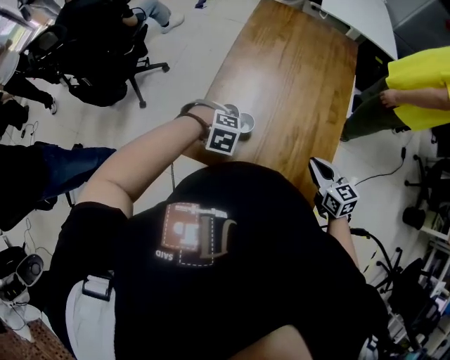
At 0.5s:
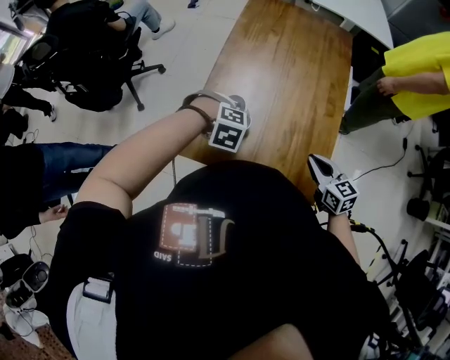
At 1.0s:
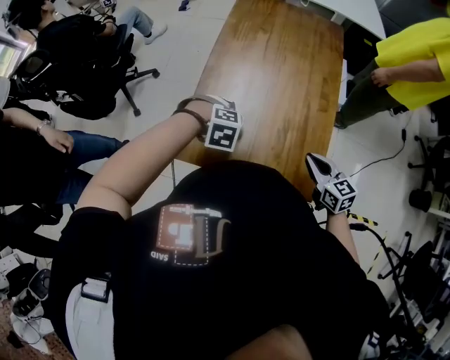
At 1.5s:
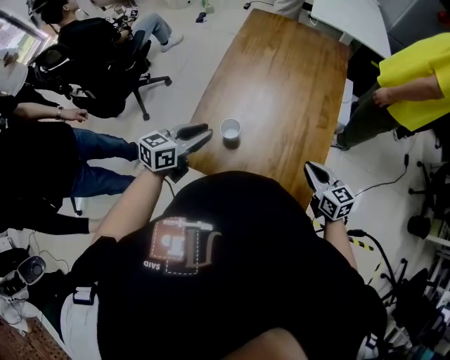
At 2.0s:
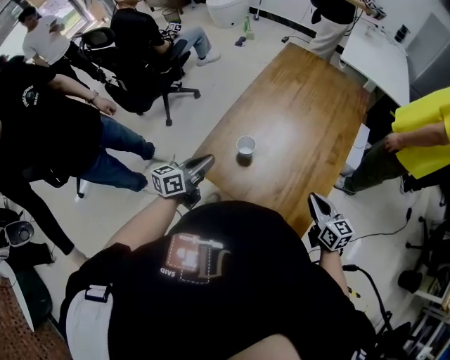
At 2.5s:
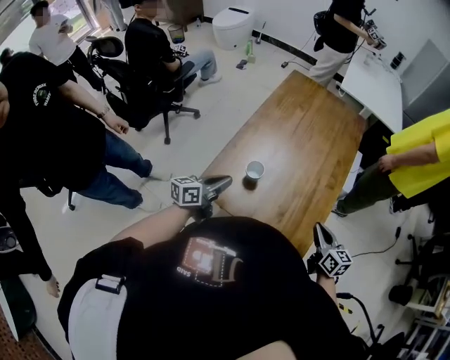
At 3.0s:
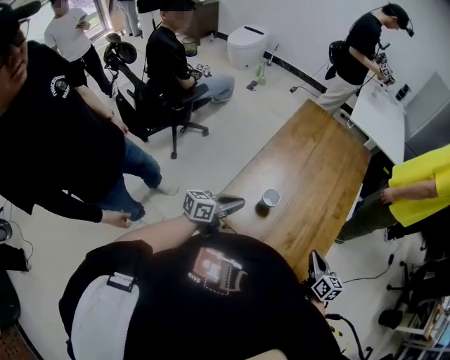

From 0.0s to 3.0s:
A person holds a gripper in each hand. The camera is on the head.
From 0.0s to 1.5s: The left gripper moves upward, approximately 10 cm, angles its fingers upward, by about 60 degrees, and opens.
From 1.5s to 3.0s: Both grippers move backward, roughly 5 cm. The left gripper closes.

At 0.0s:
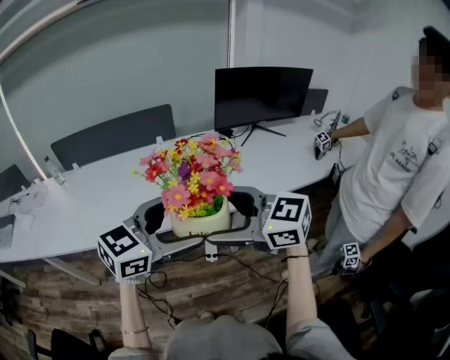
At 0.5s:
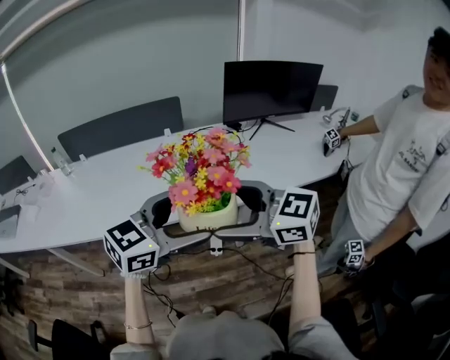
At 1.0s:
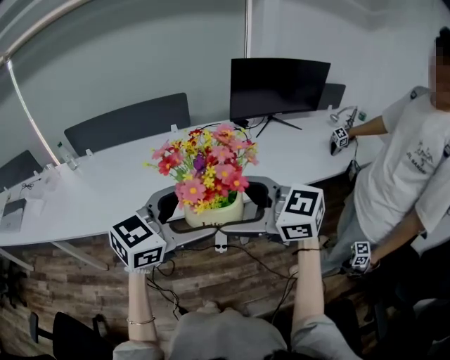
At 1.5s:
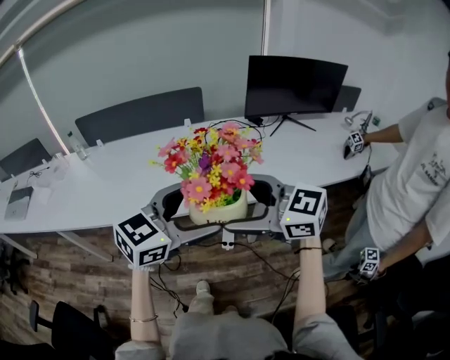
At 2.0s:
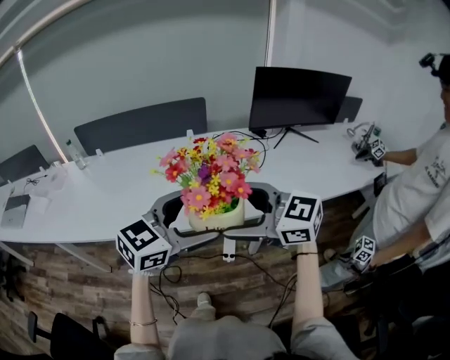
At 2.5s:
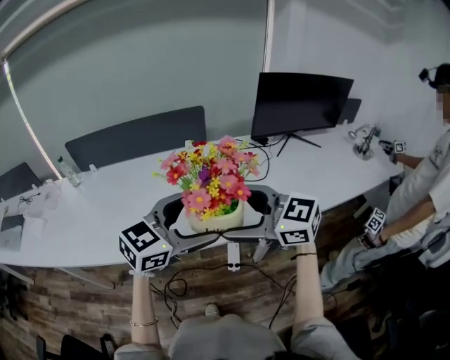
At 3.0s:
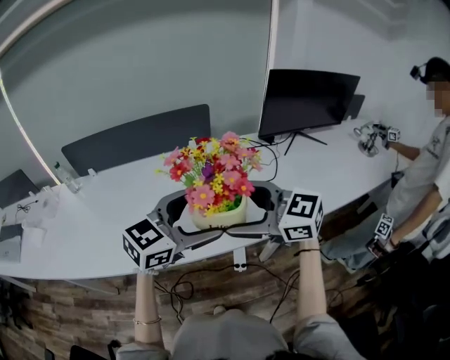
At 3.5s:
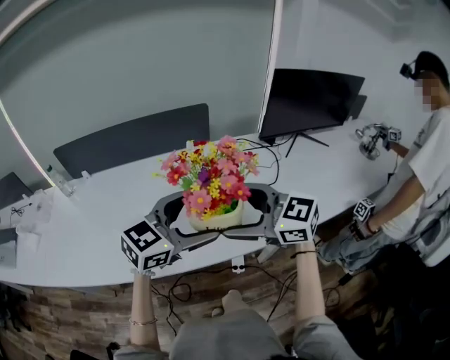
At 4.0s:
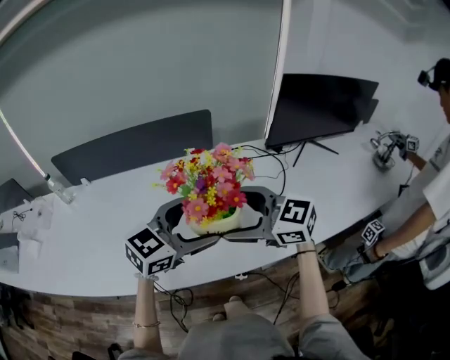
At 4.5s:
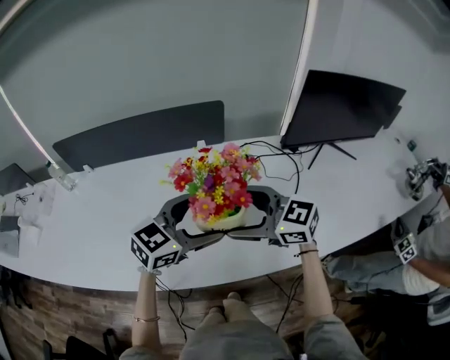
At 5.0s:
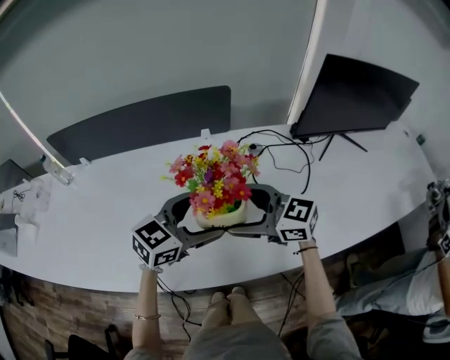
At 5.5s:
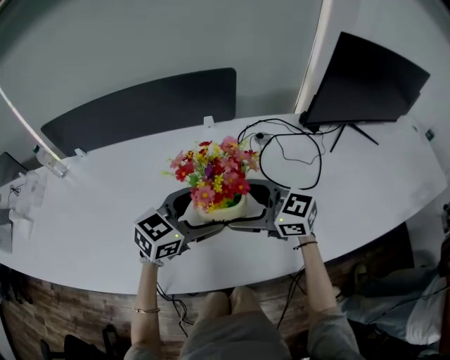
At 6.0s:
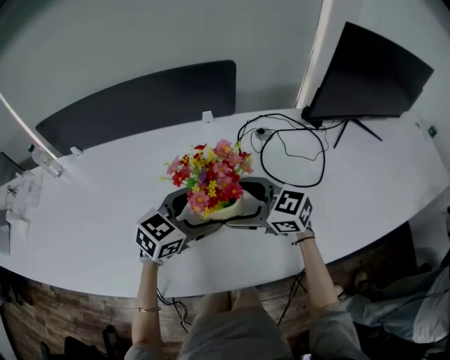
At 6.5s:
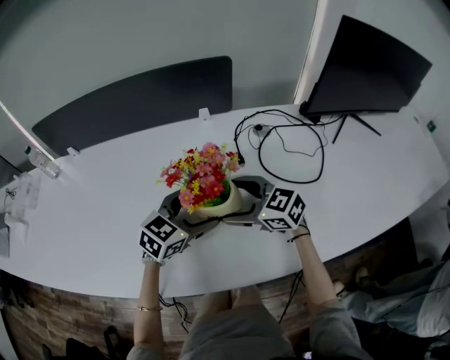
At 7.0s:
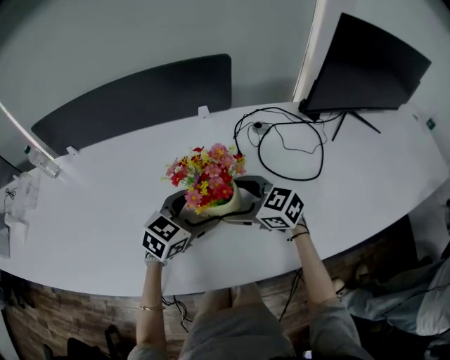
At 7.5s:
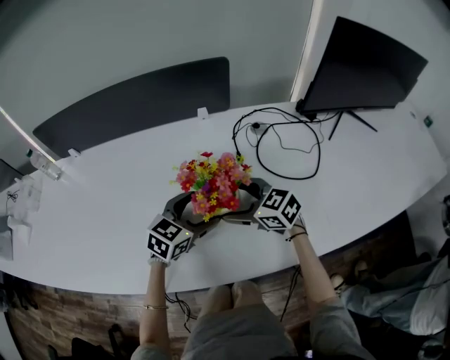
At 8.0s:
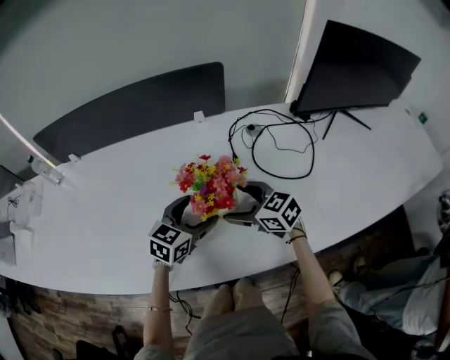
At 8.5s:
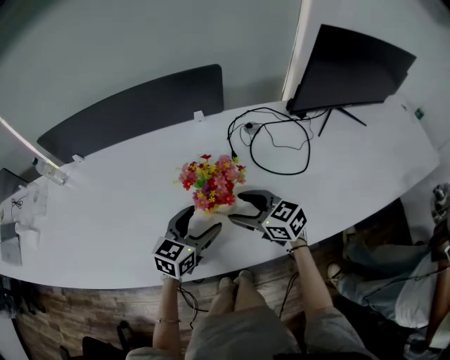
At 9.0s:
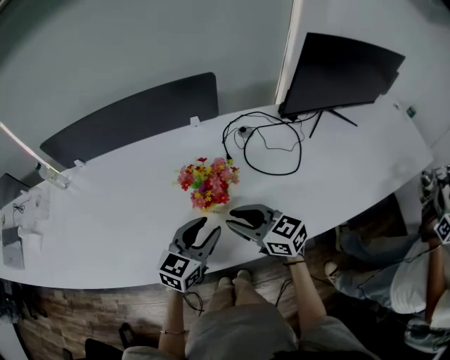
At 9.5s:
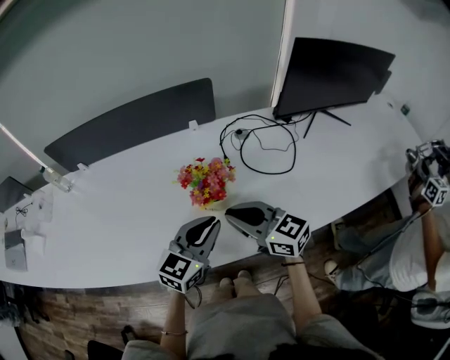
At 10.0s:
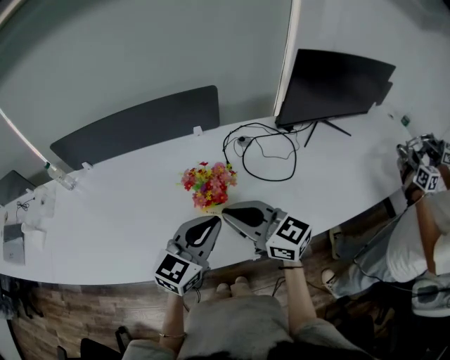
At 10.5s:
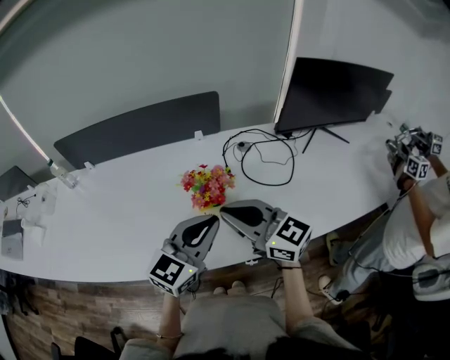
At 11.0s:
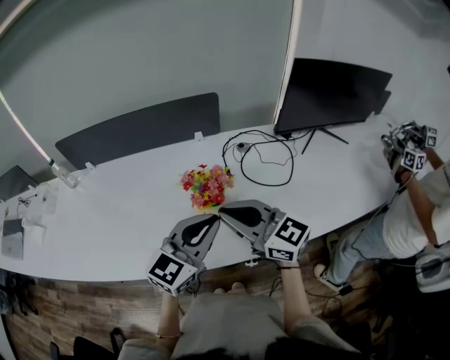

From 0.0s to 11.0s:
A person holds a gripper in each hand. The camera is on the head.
From 0.0s to 2.0s: The right gripper changes place by roughly 5 cm. The left gripper changes place by roughly 5 cm.
From 2.0s to 3.5s: The left gripper shifts by approximately 20 cm. The right gripper moves approximately 20 cm.
From 3.5s to 5.5s: Both grippers travel together downward, some 20 cm.
From 5.5s to 7.5s: Both grippers move downward, approximately 10 cm.
From 7.5s to 9.0s: The left gripper is displaced backward and upward by about 15 cm, and closes up; the right gripper shifts some 15 cm upward and backward, and closes up.
From 9.0s to 11.0s: Both grippers travel together upward, approximately 15 cm. The left gripper closes up. The right gripper rotates roughly 20 degrees.

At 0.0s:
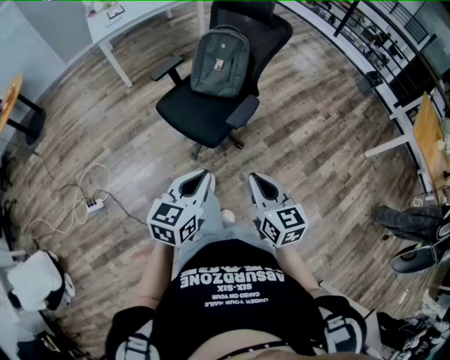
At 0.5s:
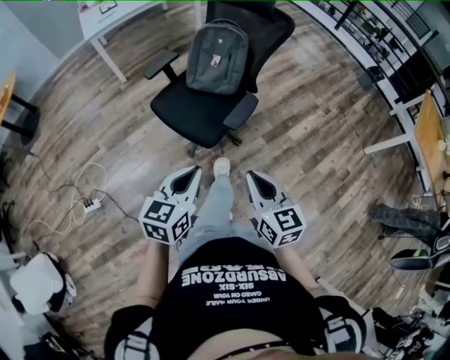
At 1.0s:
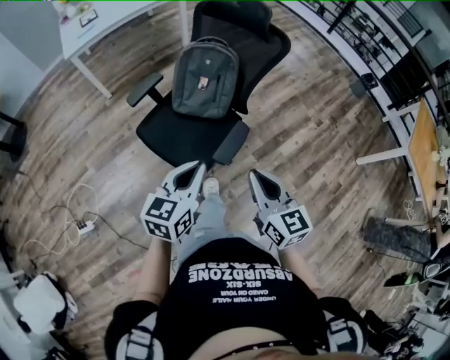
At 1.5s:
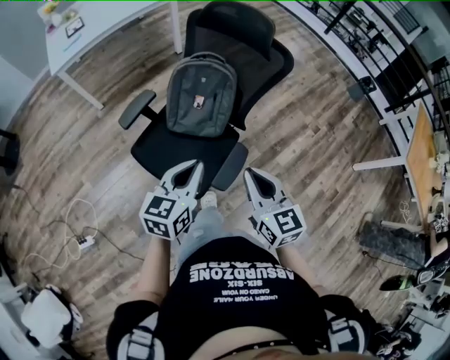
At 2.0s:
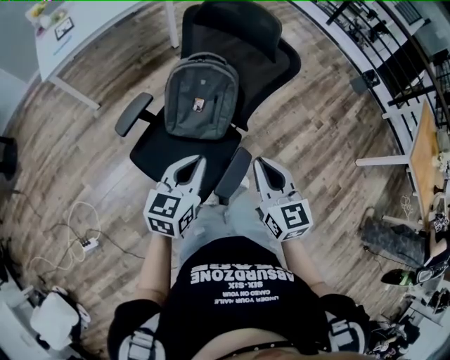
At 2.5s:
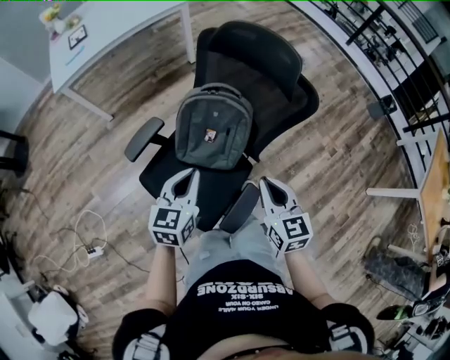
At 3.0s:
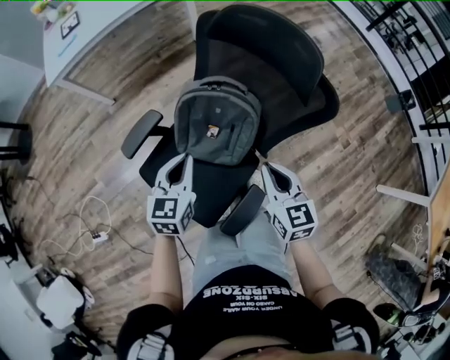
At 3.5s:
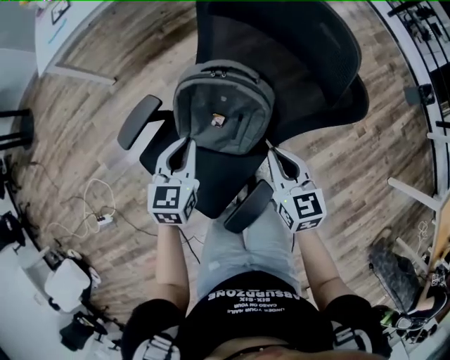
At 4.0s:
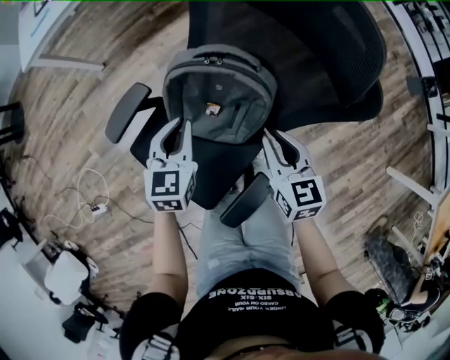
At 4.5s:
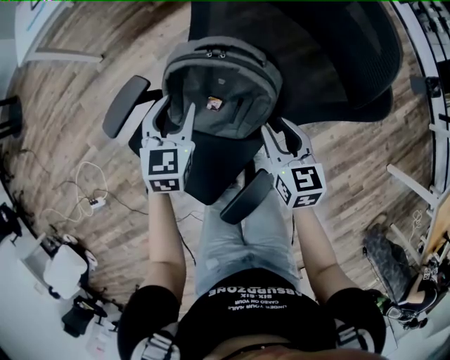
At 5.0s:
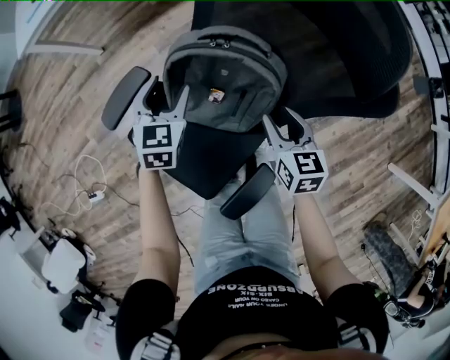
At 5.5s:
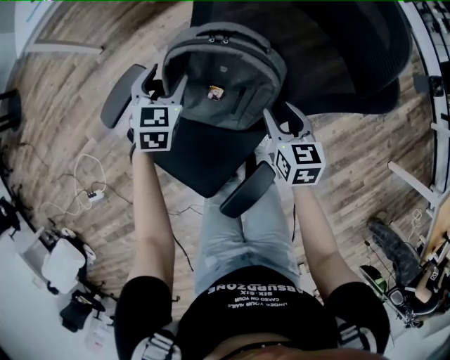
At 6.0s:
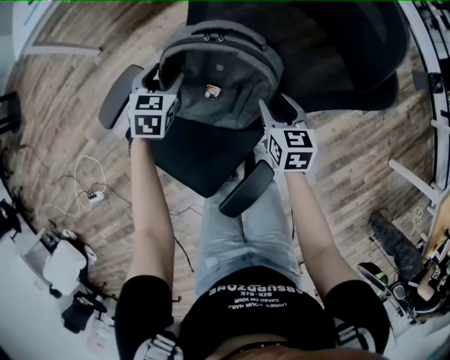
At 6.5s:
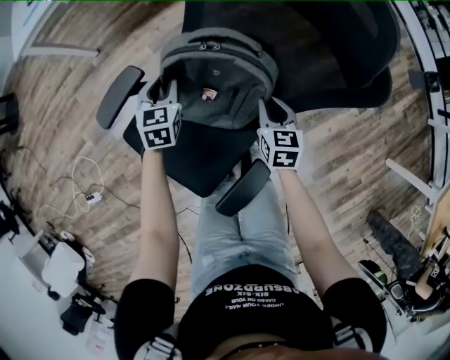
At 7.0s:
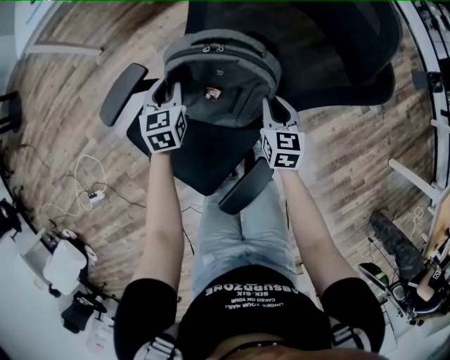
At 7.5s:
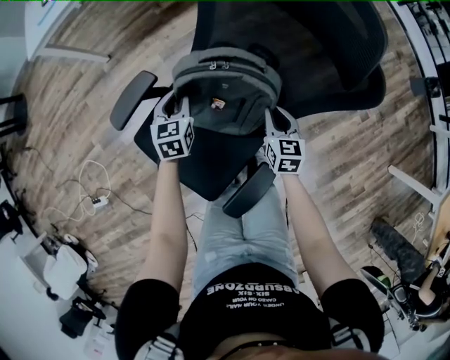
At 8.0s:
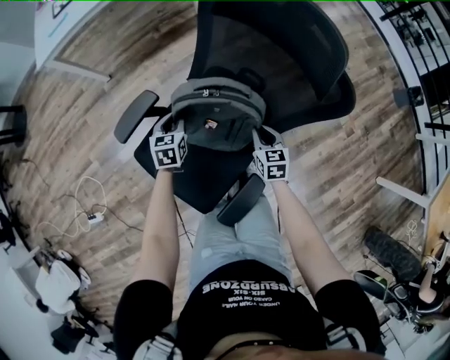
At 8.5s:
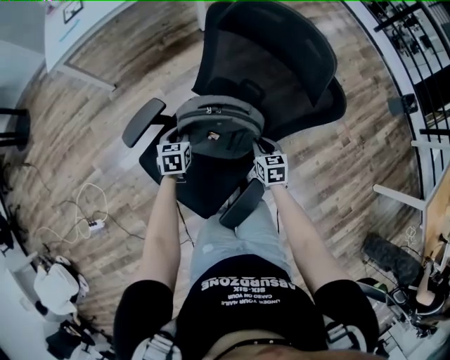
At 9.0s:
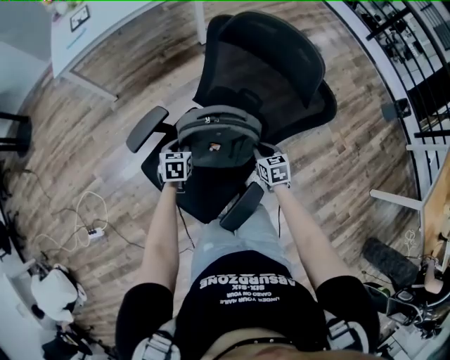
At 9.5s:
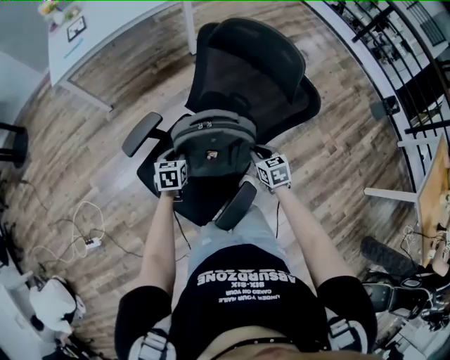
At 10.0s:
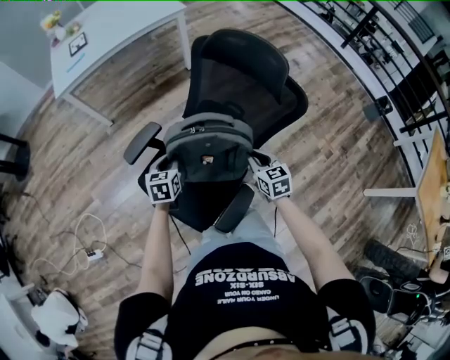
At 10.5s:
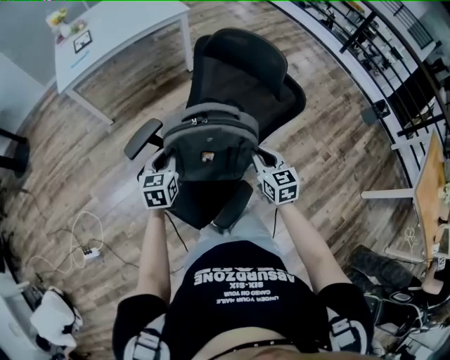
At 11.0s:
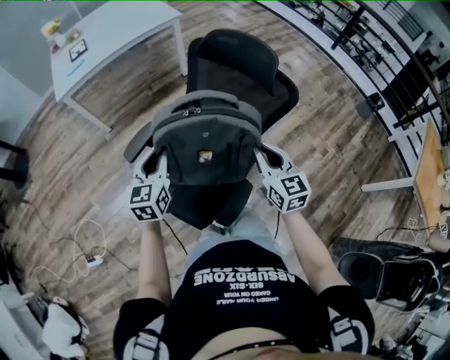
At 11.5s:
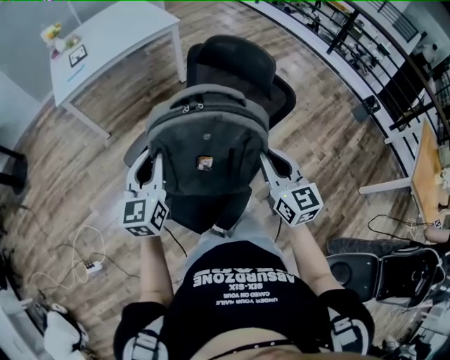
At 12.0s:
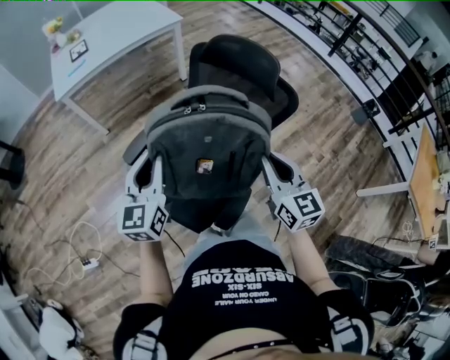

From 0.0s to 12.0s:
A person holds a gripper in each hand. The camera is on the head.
From 0.0s to 2.0s: The two grippers travel together, forward, roughly 40 cm.
From 2.0s to 4.0s: The two grippers go about 35 cm forward and downward. The left gripper rotates approximately 30 degrees.
From 4.0s to 6.0s: The left gripper shifts about 15 cm downward and forward, and opens; the right gripper is displaced downward by approximately 10 cm, and opens.
From 6.0s to 8.0s: The right gripper closes up. Meanwhile the left gripper travels backward by about 5 cm, and closes.
From 8.0s to 10.0s: Both grippers move upward and backward, roughly 15 cm.
From 10.0s to 12.0s: The left gripper is displaced upward by approximately 25 cm, and tips its fingers upward by roughly 30 degrees. The right gripper heads upward and backward, covering roughly 25 cm, and rotates approximately 30 degrees.

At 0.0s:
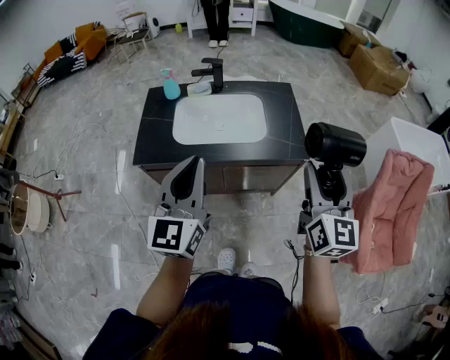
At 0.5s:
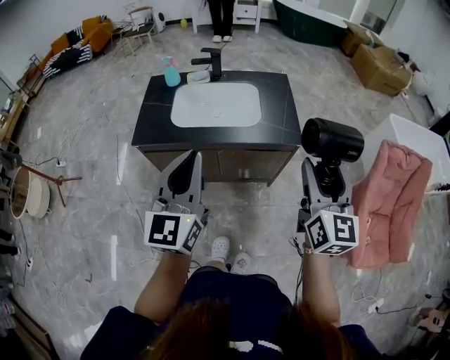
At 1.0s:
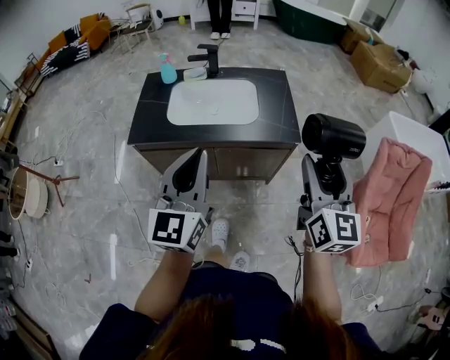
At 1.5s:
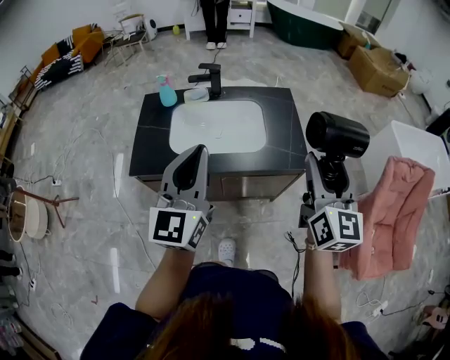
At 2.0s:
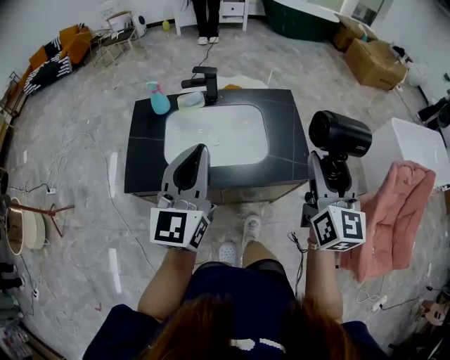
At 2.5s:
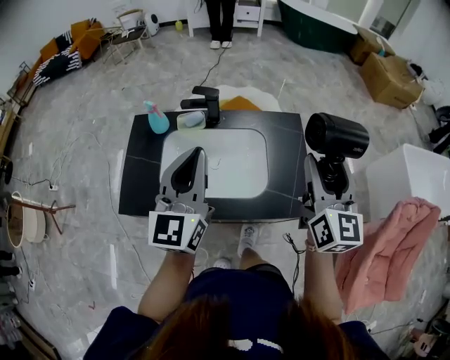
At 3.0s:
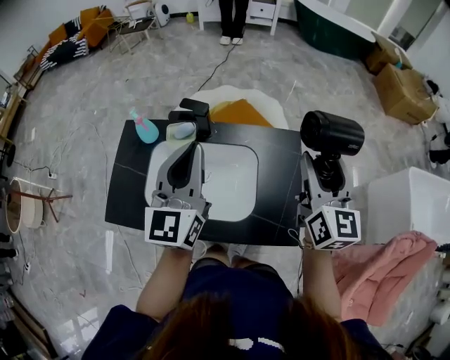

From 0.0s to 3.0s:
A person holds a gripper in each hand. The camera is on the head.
From 0.0s to 1.5s: The two grippers go roughly 5 cm forward.
From 1.5s to 3.0s: Both grippers travel together forward, approximately 40 cm.
